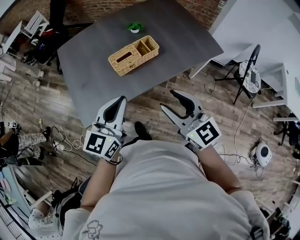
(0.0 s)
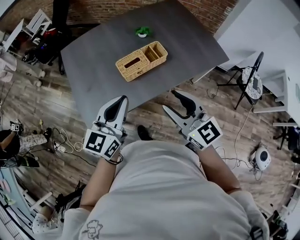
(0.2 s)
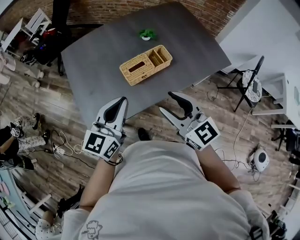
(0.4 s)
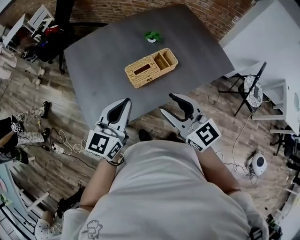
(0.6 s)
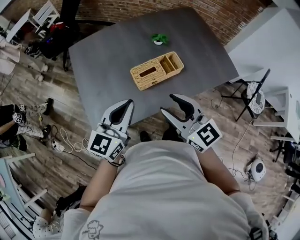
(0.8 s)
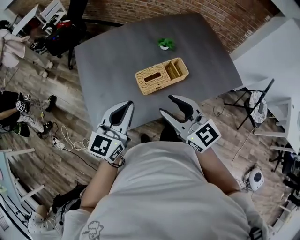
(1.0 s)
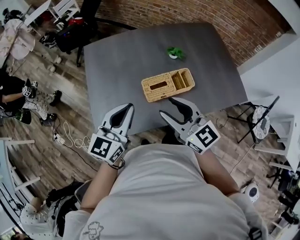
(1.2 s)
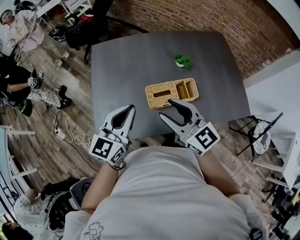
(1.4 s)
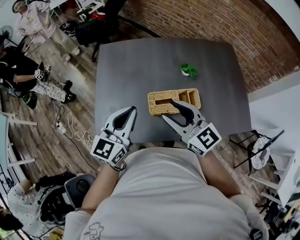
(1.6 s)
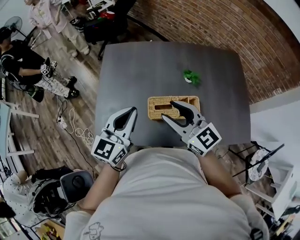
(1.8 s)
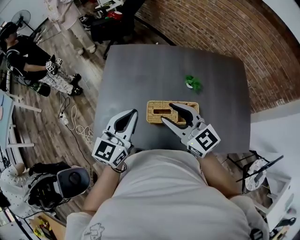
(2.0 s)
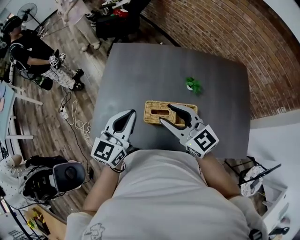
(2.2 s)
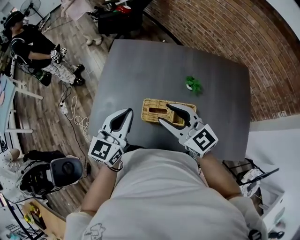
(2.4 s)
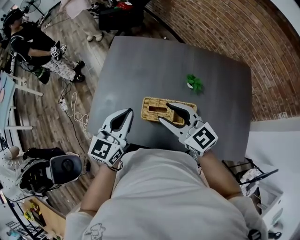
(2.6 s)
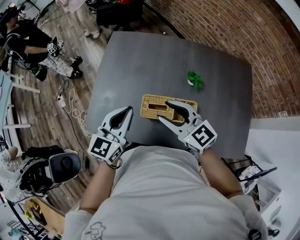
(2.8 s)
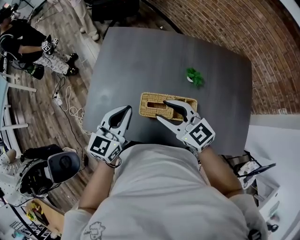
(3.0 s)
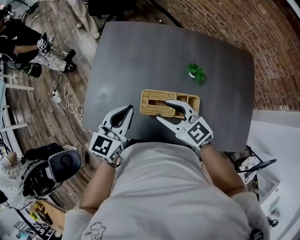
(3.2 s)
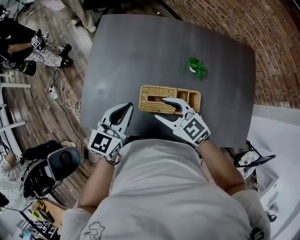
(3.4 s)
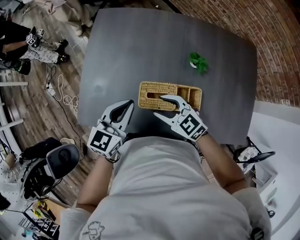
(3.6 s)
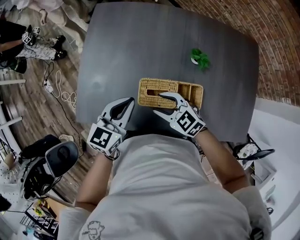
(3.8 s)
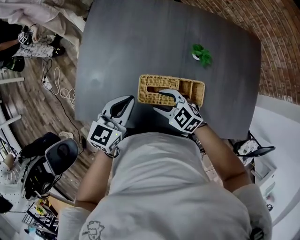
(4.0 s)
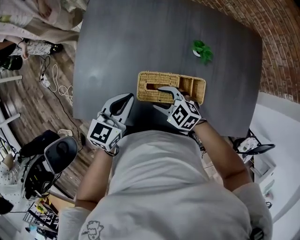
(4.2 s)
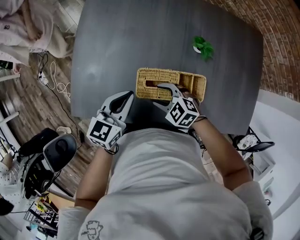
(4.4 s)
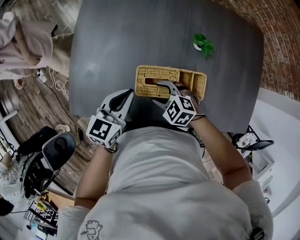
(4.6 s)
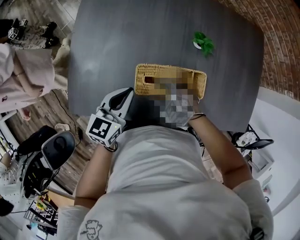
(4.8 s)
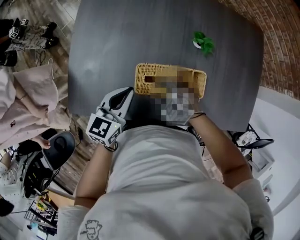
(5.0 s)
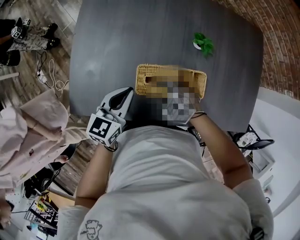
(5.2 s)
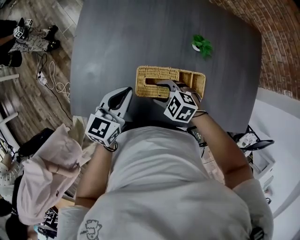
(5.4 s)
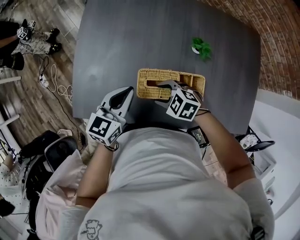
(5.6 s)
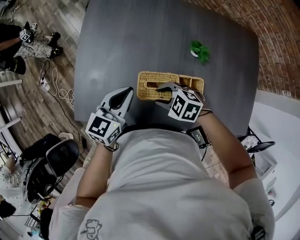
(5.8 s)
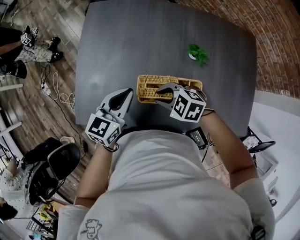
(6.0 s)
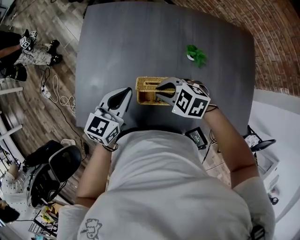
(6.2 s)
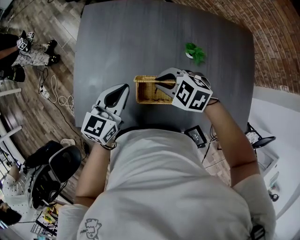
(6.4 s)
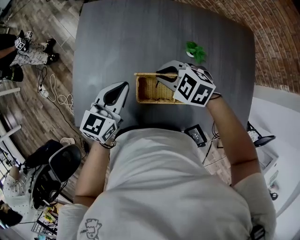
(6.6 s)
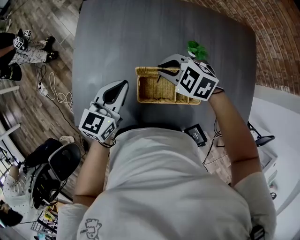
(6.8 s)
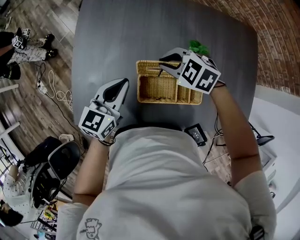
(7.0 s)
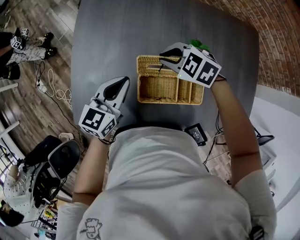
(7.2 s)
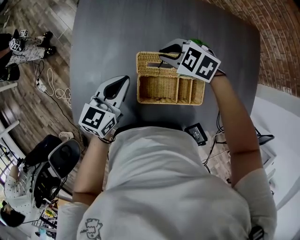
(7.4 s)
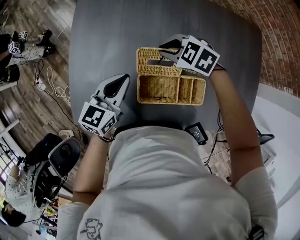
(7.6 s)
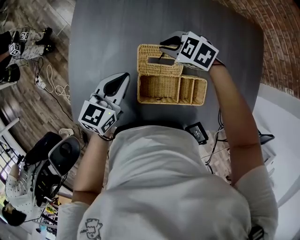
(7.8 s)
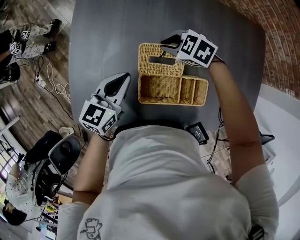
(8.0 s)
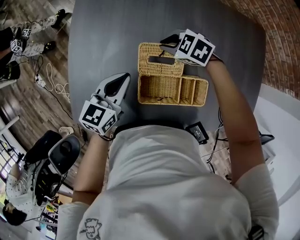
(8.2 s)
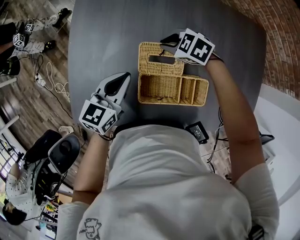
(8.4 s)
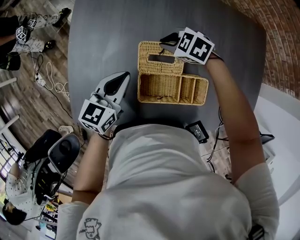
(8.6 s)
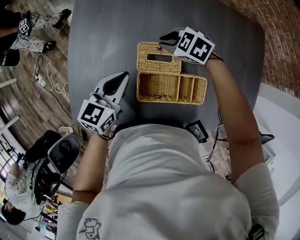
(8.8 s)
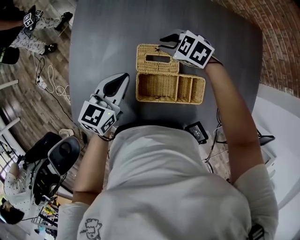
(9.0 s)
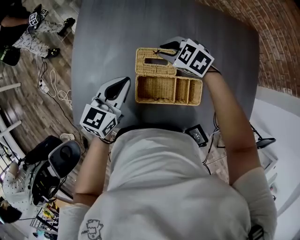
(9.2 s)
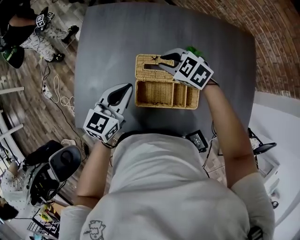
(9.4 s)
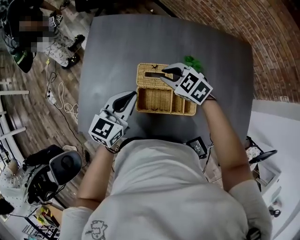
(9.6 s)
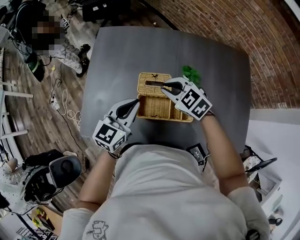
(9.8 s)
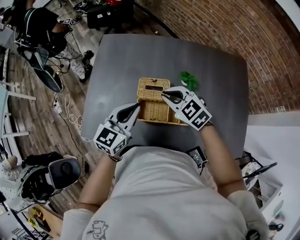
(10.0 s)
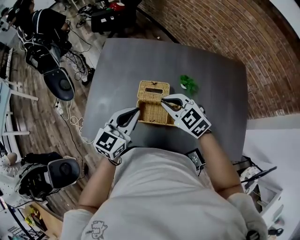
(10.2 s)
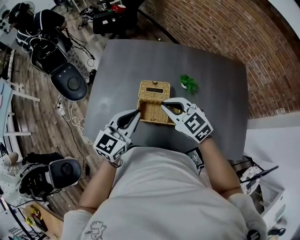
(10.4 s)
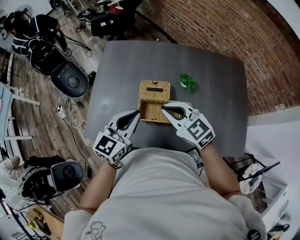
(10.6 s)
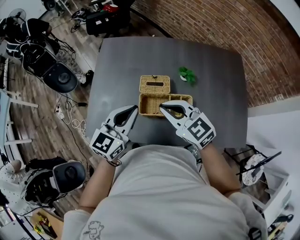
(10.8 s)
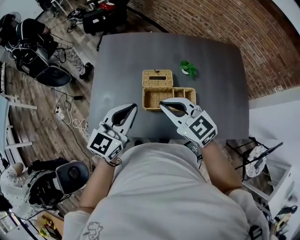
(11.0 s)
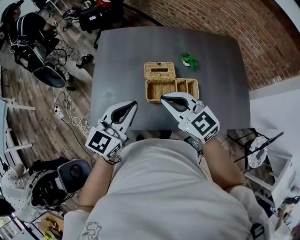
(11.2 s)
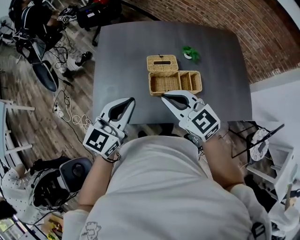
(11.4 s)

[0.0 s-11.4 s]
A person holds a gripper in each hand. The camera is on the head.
0.0 to 1.4 s: Both grippers move forward and to the left, roughly 20 cm. The right gripper changes its angle by roughly 20 degrees.
1.4 to 2.8 s: The left gripper changes place by some 5 cm, and changes its angle by roughly 20 degrees. Meanwhile the right gripper goes about 10 cm forward and to the right, and turns by about 30 degrees.
2.8 to 4.2 s: The left gripper goes some 15 cm downward; the right gripper moves downward, about 25 cm, and points its fingers approximately 30 degrees further downward.
4.2 to 5.6 s: There are only small adjustments of the grippers.
5.6 to 7.2 s: The left gripper heads forward, covering some 5 cm. Meanwhile the right gripper goes approximately 20 cm forward, upward and to the right, and closes its fingers.
7.2 to 8.6 s: The right gripper shifts some 10 cm downward and forward.
8.6 to 10.0 s: Both grippers move upward and backward, about 20 cm. The right gripper changes its angle by about 30 degrees.
10.0 to 11.4 s: The left gripper goes approximately 20 cm to the left, backward and upward. The right gripper shifts about 20 cm backward, to the left and upward, and changes its angle by about 20 degrees.

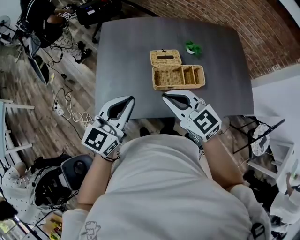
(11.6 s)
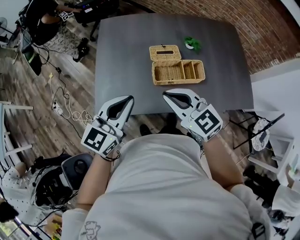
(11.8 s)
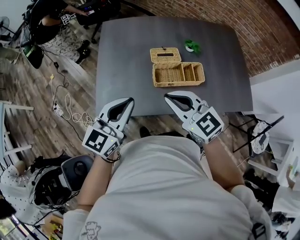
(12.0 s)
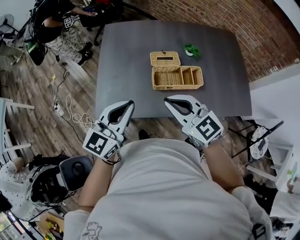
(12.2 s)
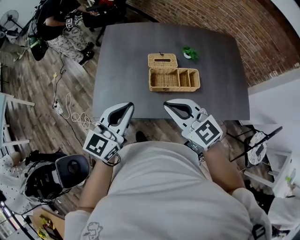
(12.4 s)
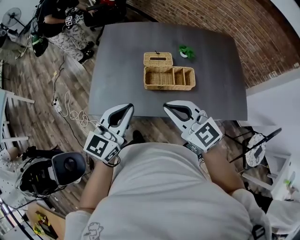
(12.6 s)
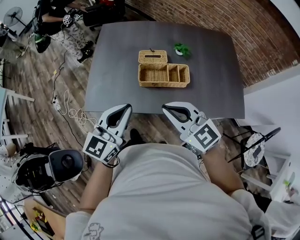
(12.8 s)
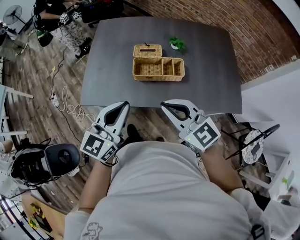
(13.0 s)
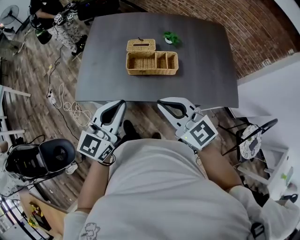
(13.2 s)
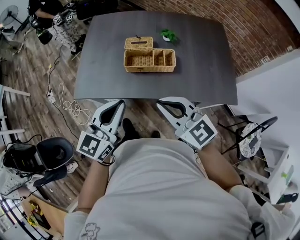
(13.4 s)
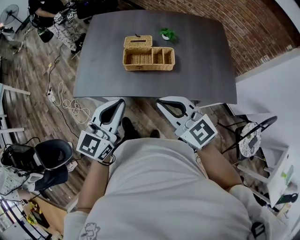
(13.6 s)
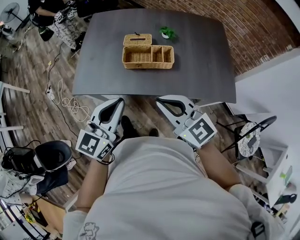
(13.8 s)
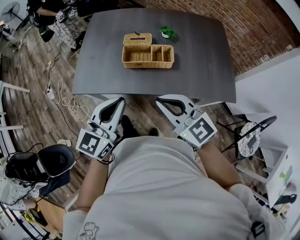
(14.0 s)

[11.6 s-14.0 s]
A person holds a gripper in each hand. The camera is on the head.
11.6 to 12.8 s: Both grippers travel together backward and to the right, some 10 cm.
12.8 to 14.0 s: Both grippers move backward and to the right, some 10 cm.

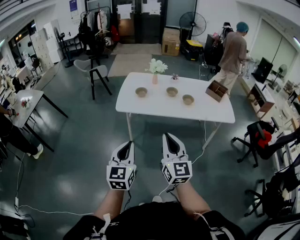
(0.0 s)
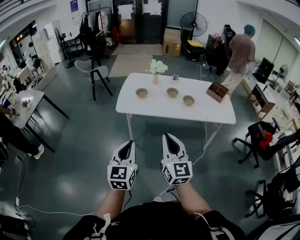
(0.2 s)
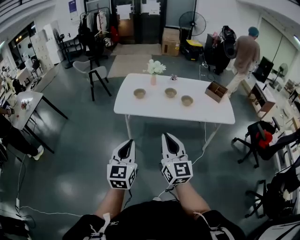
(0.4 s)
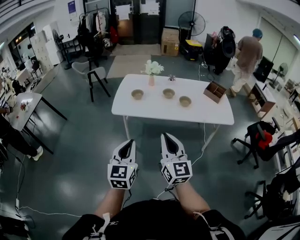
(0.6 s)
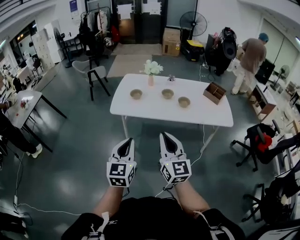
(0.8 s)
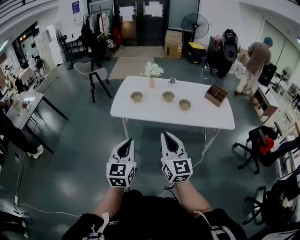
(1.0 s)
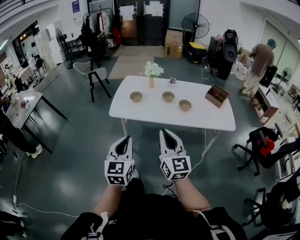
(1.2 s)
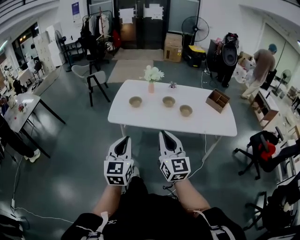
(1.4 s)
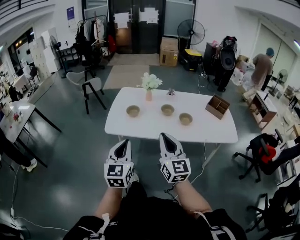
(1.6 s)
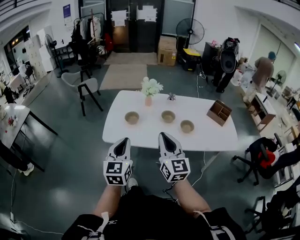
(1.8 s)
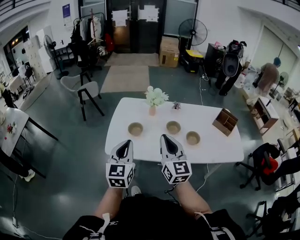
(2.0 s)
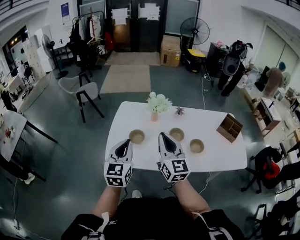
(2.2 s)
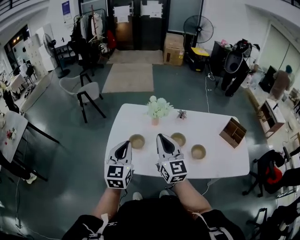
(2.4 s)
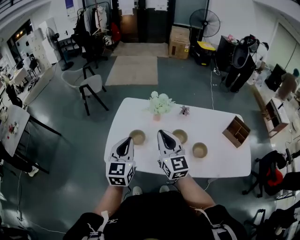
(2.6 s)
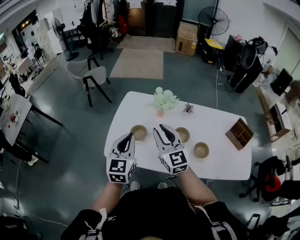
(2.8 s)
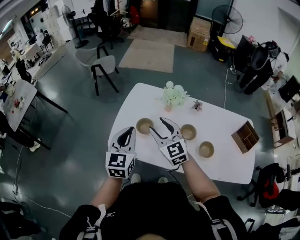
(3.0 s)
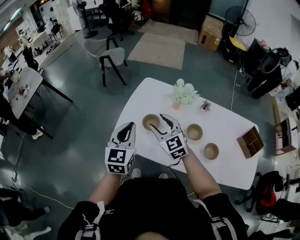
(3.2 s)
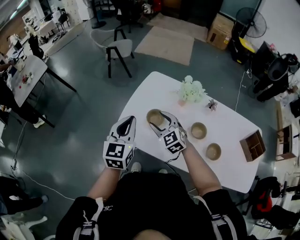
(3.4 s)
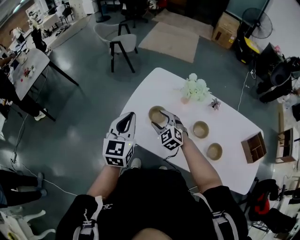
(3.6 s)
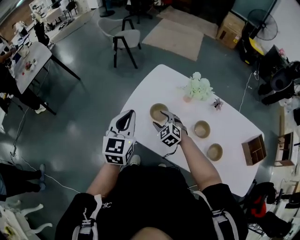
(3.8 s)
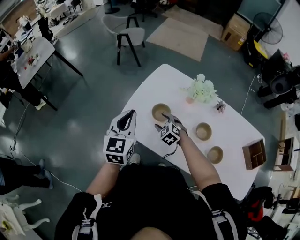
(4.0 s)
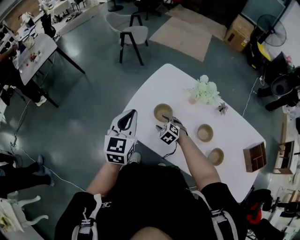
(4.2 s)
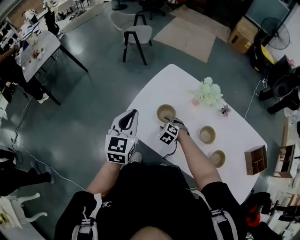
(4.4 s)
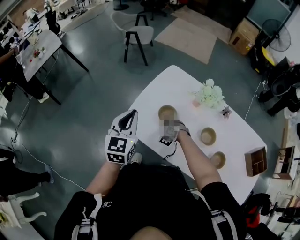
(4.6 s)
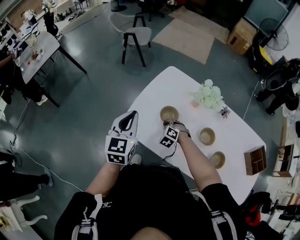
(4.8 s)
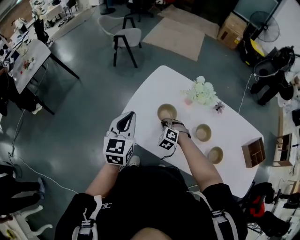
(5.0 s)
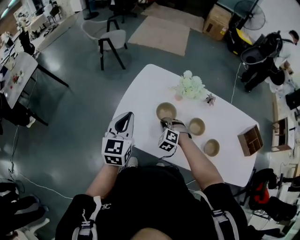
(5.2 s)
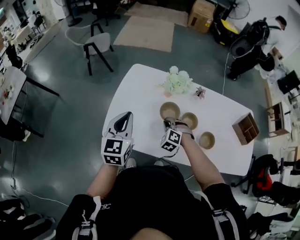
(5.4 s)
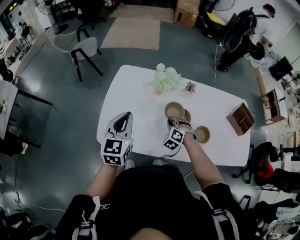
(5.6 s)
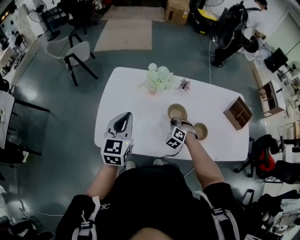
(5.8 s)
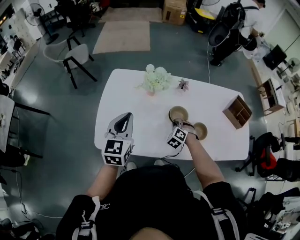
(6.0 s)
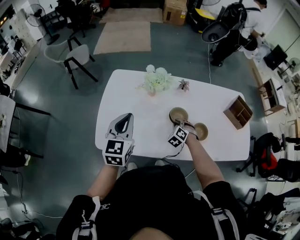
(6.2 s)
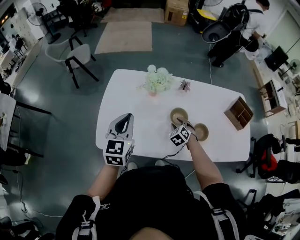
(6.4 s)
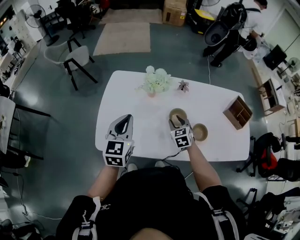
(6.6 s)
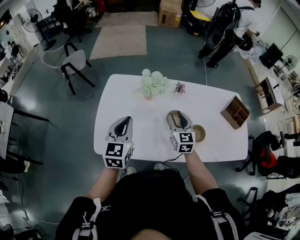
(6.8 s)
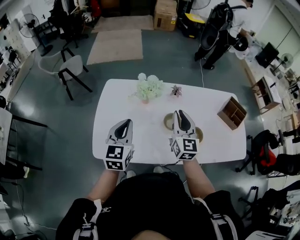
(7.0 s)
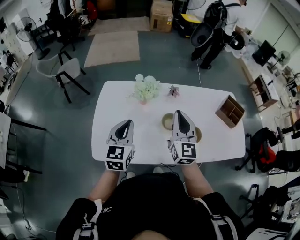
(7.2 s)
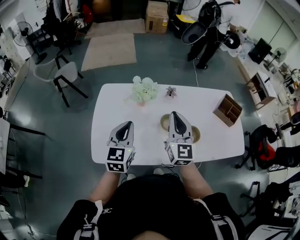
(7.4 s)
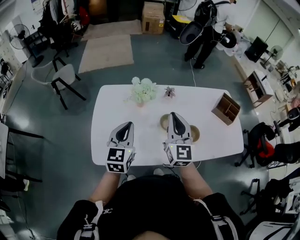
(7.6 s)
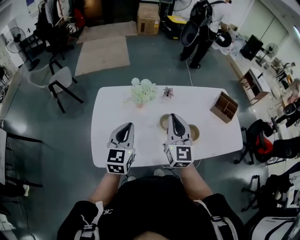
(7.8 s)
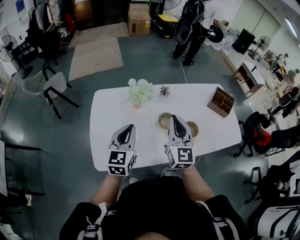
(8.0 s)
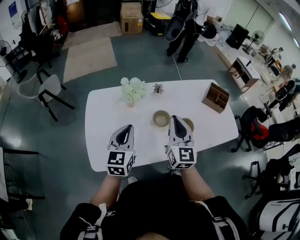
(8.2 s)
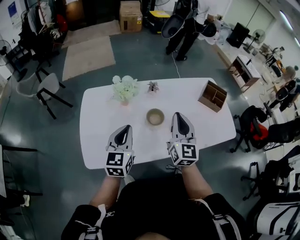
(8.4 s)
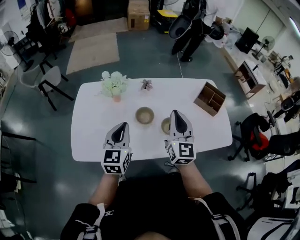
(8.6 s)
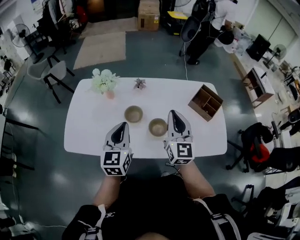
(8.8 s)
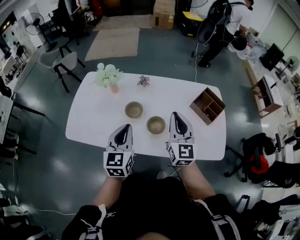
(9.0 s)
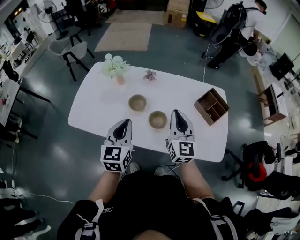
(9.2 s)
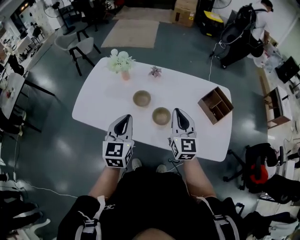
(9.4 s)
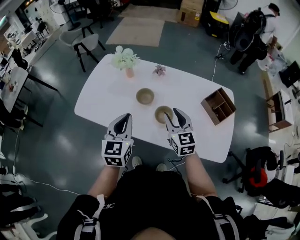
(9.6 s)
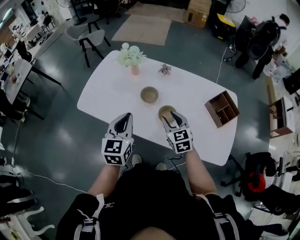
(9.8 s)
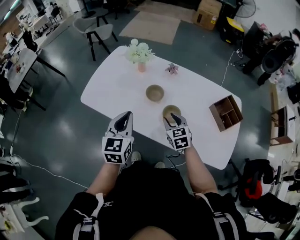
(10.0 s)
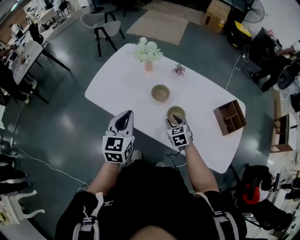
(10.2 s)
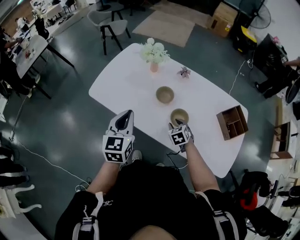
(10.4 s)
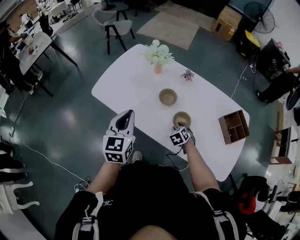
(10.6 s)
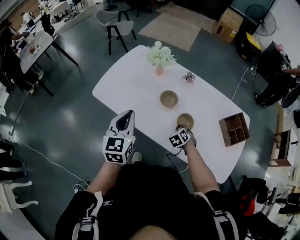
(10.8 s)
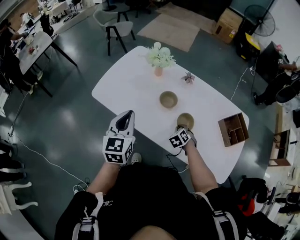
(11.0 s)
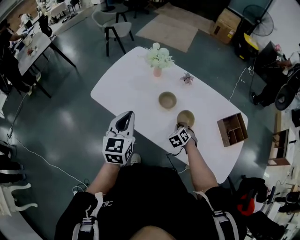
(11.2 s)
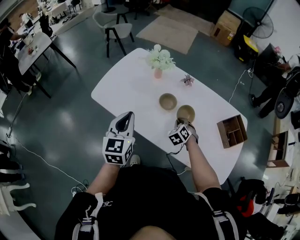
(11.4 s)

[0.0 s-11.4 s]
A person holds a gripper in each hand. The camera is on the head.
0.0 to 1.4 s: Both grippers travel together forward and to the right, some 15 cm.
1.4 to 2.8 s: The two grippers travel together, forward, some 50 cm.
2.8 to 4.2 s: The right gripper moves downward, some 30 cm, angles its fingers downward, by about 50 degrees, and opens its fingers. Meanwhile the left gripper goes roughly 15 cm to the left, forward and downward.
4.2 to 5.6 s: The right gripper moves some 20 cm, turns by approximately 30 degrees, and closes. The left gripper moves approximately 10 cm, and turns by about 20 degrees.
5.6 to 7.2 s: The right gripper is displaced upward by some 25 cm, points its fingers some 50 degrees further upward, and opens, then closes again. Meanwhile the left gripper heads to the right, covering about 5 cm.
7.2 to 8.6 s: The grippers both shift to the right by some 15 cm.
8.6 to 10.0 s: The left gripper moves approximately 15 cm, and changes its angle by approximately 30 degrees; the right gripper shifts roughly 20 cm downward, points its fingers approximately 40 degrees further downward, and opens.
10.0 to 11.4 s: The right gripper goes about 10 cm downward and forward, swivels about 40 degrees, and closes up. The left gripper goes some 5 cm to the left.
